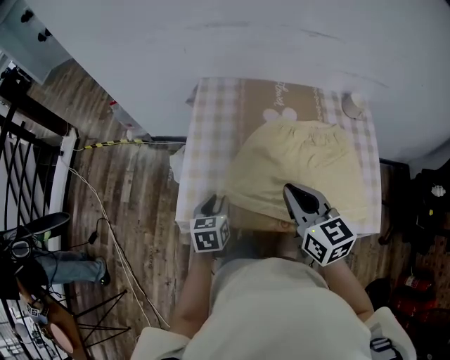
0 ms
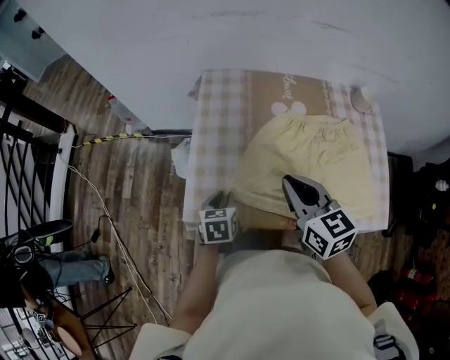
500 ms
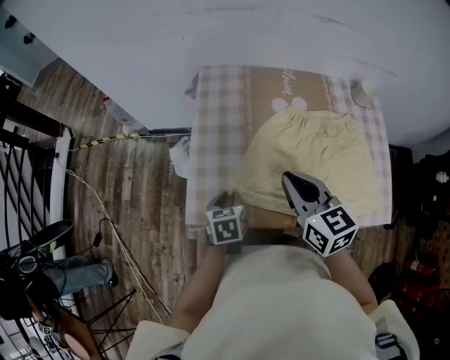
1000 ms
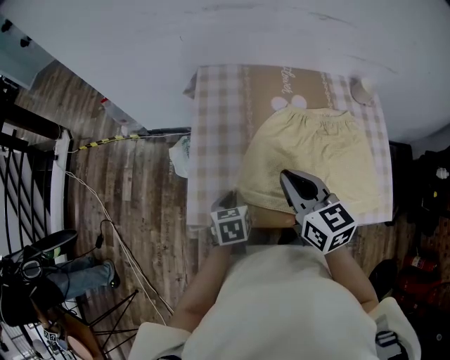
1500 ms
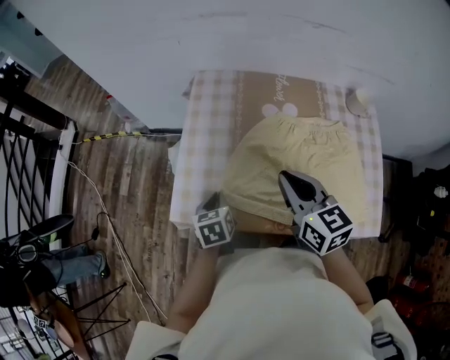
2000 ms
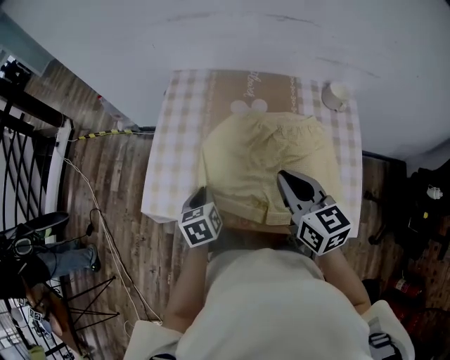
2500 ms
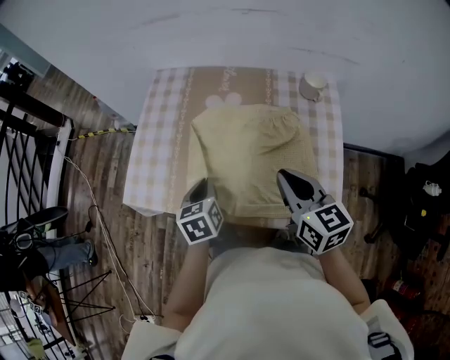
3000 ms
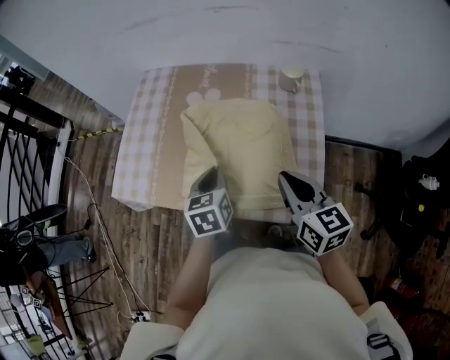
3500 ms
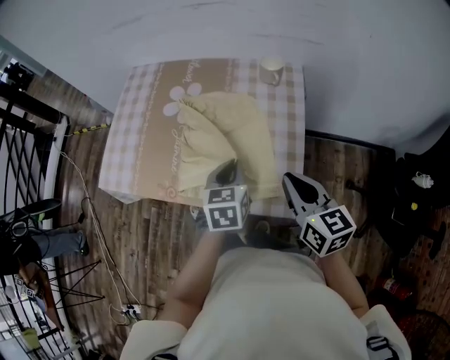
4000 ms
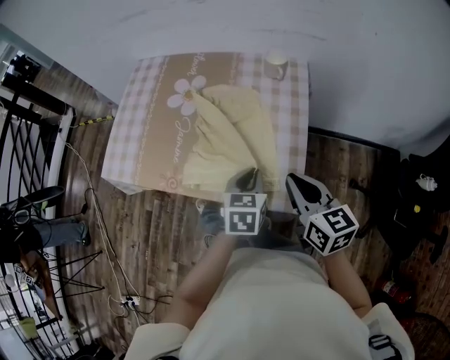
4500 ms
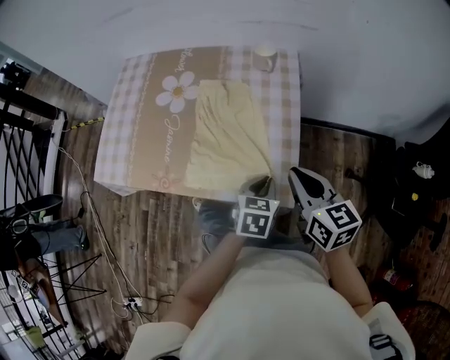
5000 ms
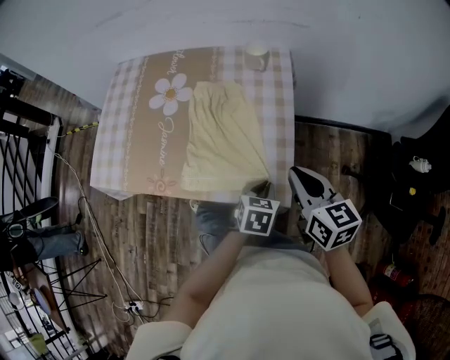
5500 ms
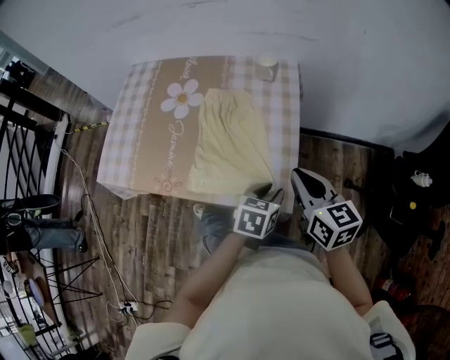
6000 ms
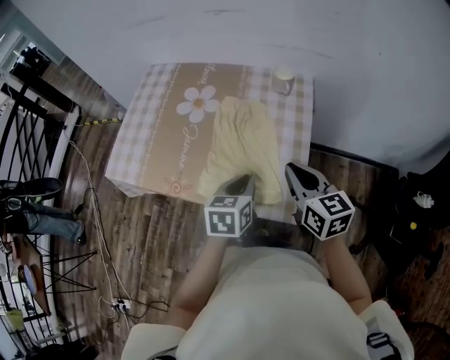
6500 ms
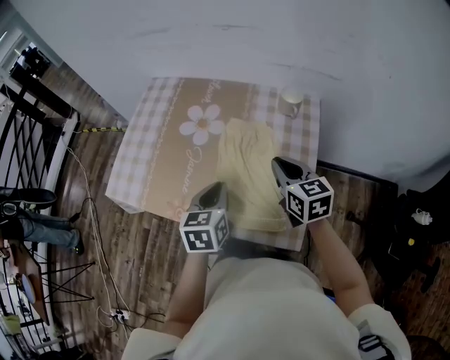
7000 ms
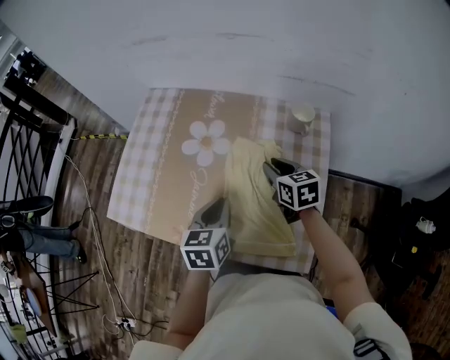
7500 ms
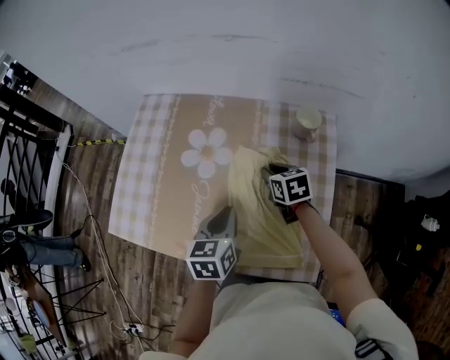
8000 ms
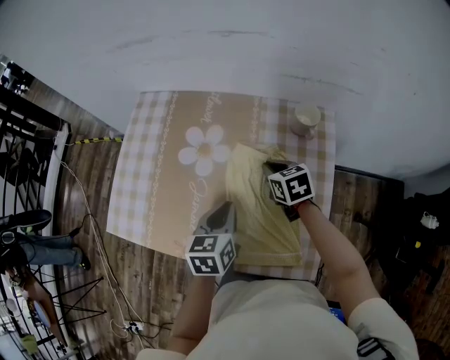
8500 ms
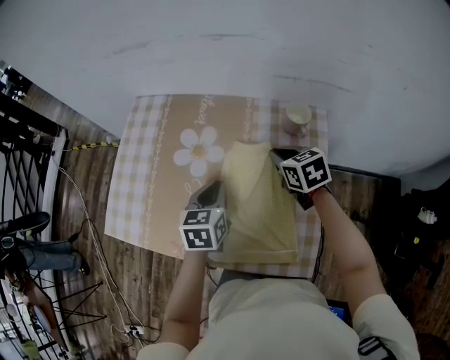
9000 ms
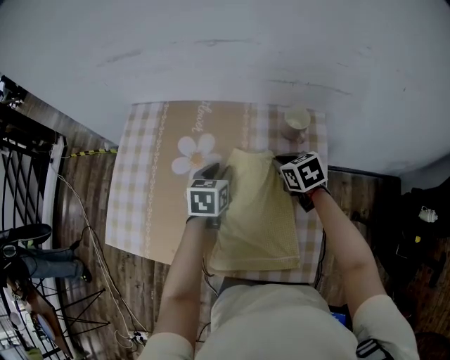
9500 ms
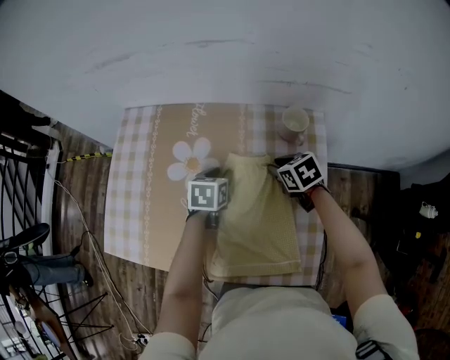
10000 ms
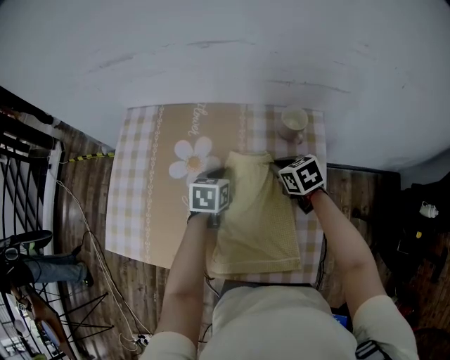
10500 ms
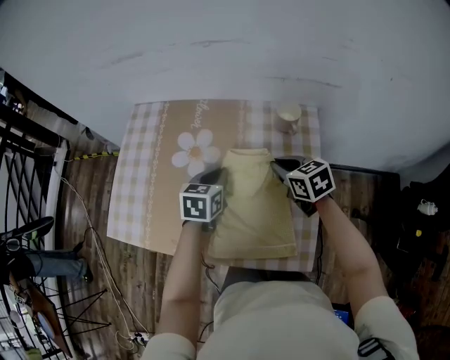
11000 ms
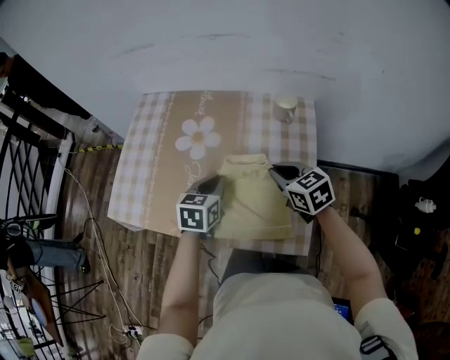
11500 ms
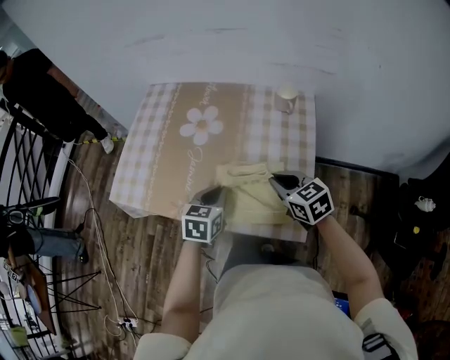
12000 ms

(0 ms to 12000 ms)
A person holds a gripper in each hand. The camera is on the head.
0 ms - 2000 ms: The left gripper closes.
2000 ms - 4000 ms: The left gripper is displaced to the right by about 40 cm, while the right gripper moves to the right and backward, about 40 cm.
4000 ms - 6000 ms: The left gripper heads to the right, backward and downward, covering roughly 15 cm, rotates some 30 degrees, and opens.
6000 ms - 8000 ms: The right gripper shifts about 35 cm forward, downward and to the left, and turns by roughly 30 degrees, while the left gripper is displaced to the left and forward by some 30 cm, rotates roughly 30 degrees, and closes.
8000 ms - 10000 ms: The right gripper travels to the right by some 5 cm, and goes upward and returns, approximately 5 cm each way; the left gripper travels forward and downward by approximately 15 cm, rotates about 20 degrees, and opens up.
10000 ms - 12000 ms: The right gripper heads backward and upward, covering roughly 25 cm, and turns by some 20 degrees. Meanwhile the left gripper heads backward, covering roughly 25 cm, and closes.

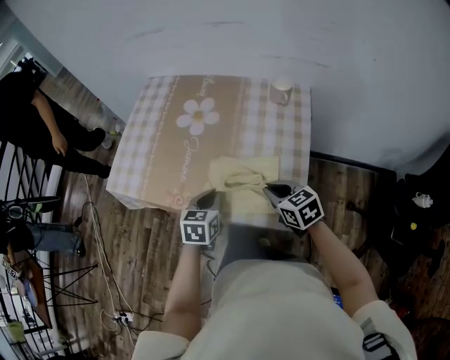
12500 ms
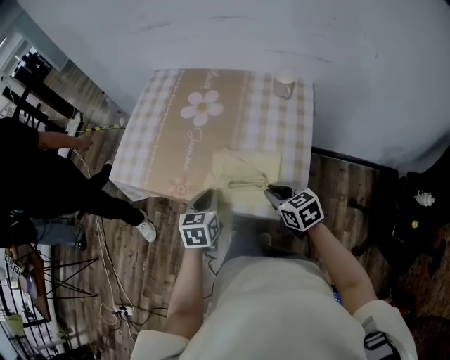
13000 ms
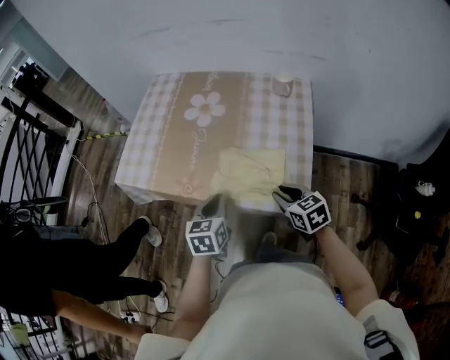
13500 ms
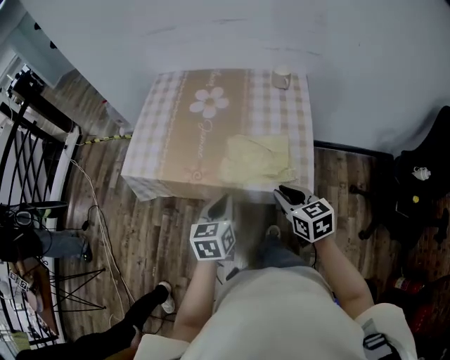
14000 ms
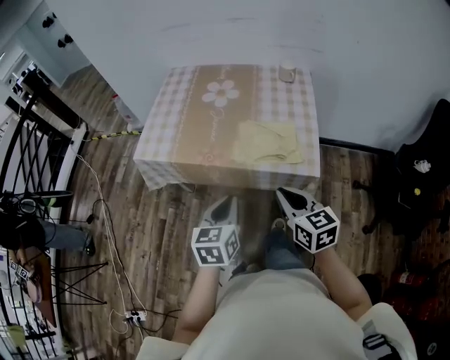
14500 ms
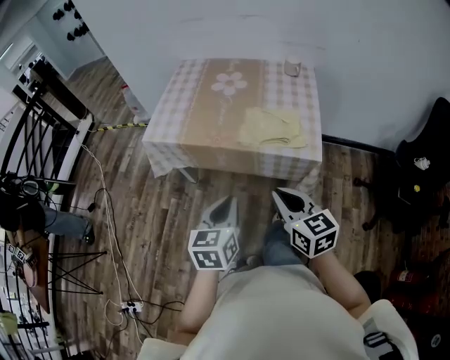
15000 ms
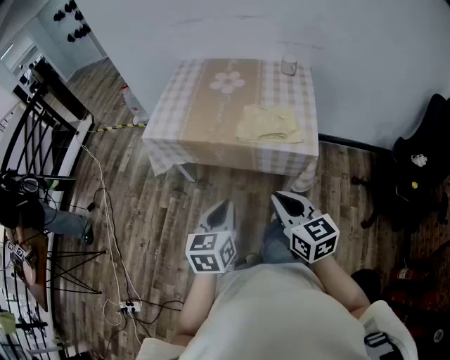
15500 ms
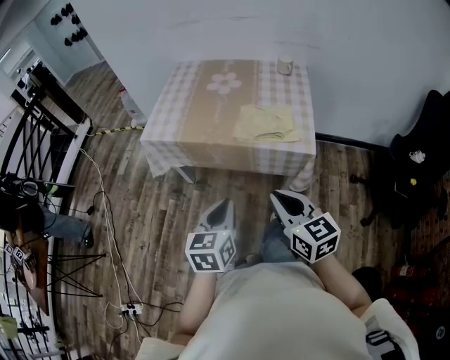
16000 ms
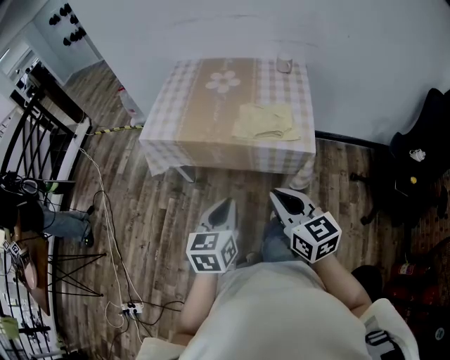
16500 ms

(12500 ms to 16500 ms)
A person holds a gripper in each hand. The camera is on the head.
12500 ms - 14500 ms: The left gripper heads backward, upward and to the left, covering about 25 cm. Meanwhile the right gripper heads backward, to the left and upward, covering some 25 cm, and changes its angle by approximately 20 degrees.
14500 ms - 16500 ms: The left gripper is displaced backward by some 10 cm, while the right gripper shifts about 15 cm backward, to the left and upward.

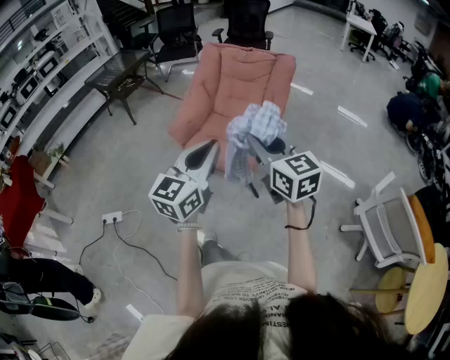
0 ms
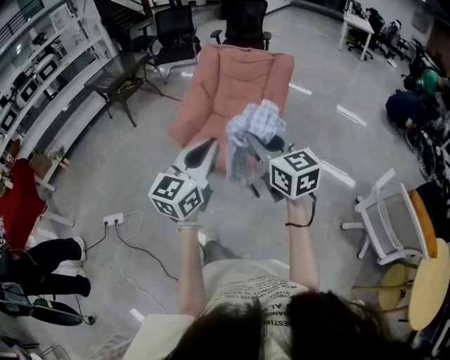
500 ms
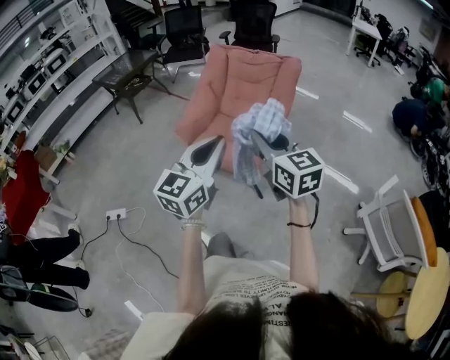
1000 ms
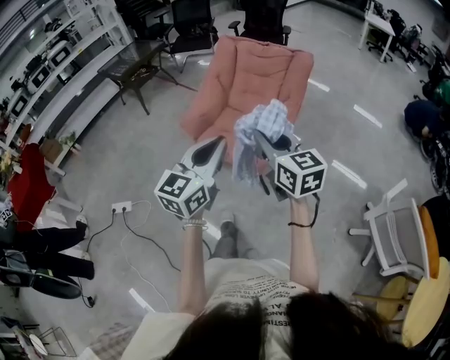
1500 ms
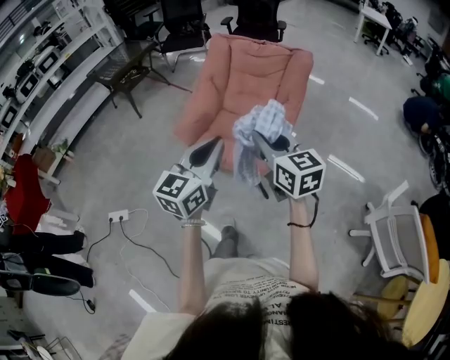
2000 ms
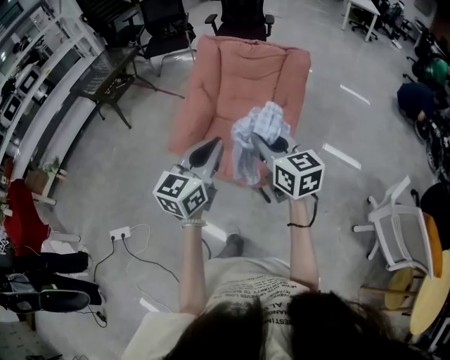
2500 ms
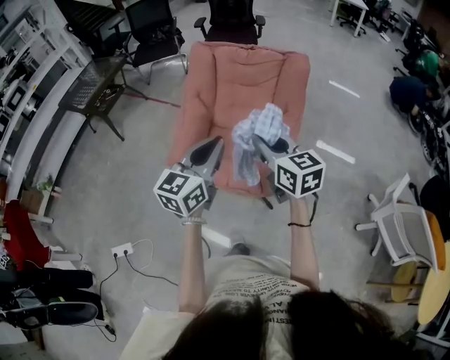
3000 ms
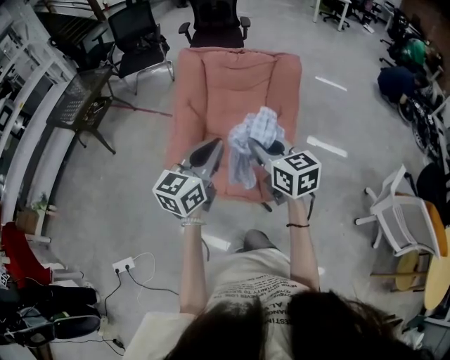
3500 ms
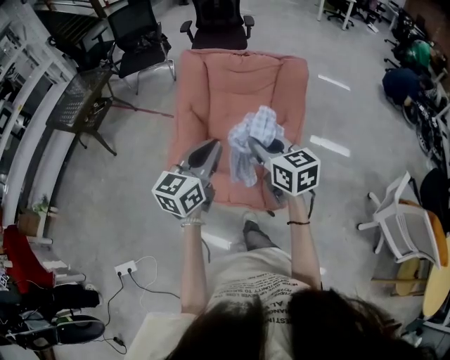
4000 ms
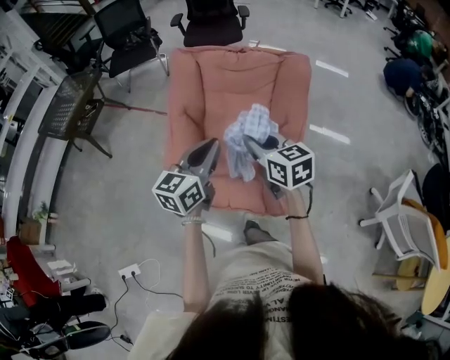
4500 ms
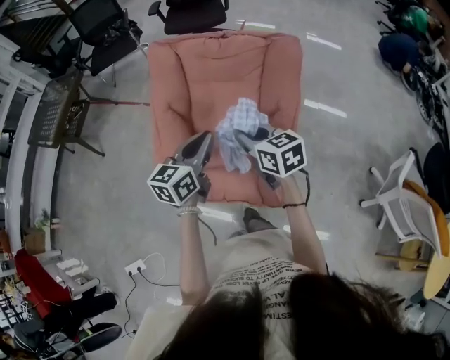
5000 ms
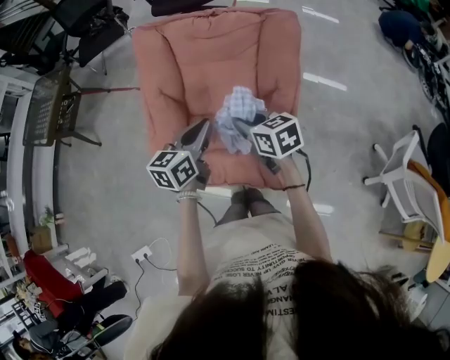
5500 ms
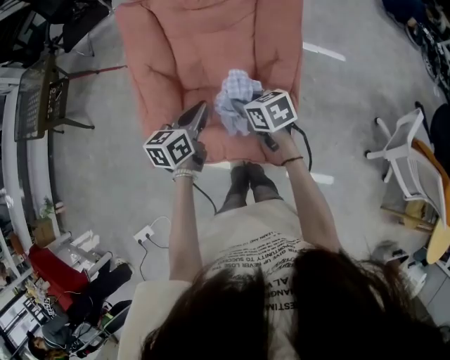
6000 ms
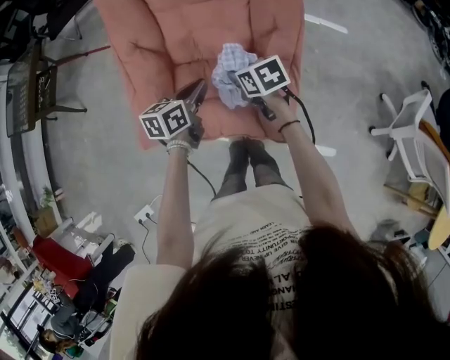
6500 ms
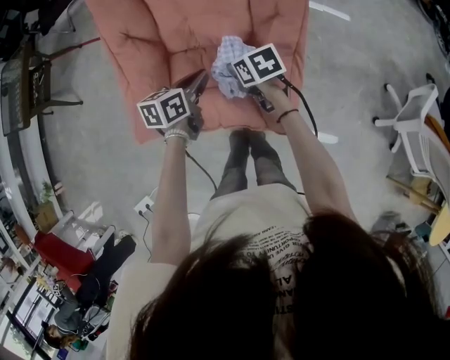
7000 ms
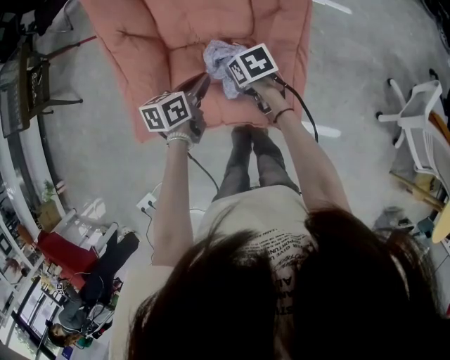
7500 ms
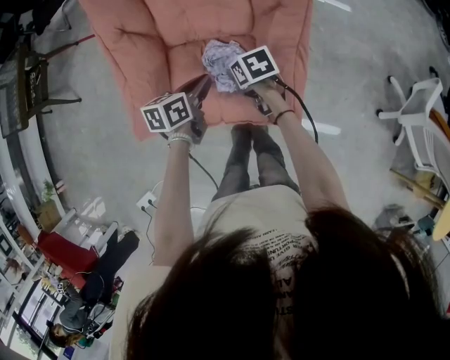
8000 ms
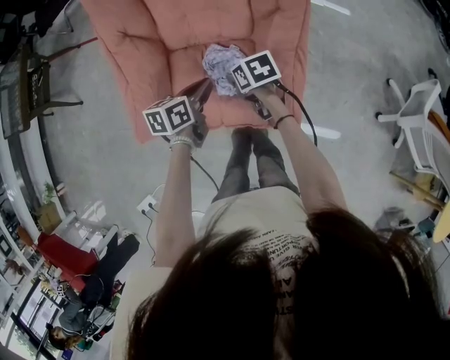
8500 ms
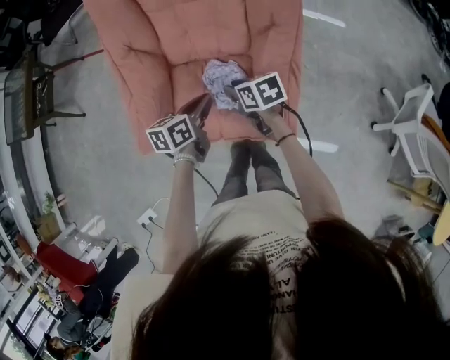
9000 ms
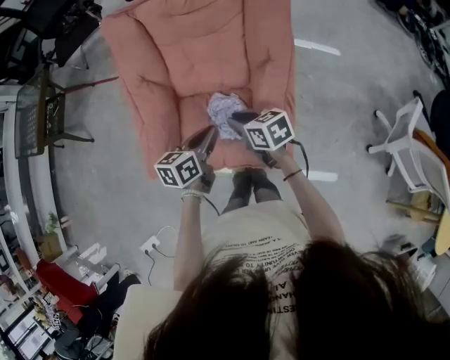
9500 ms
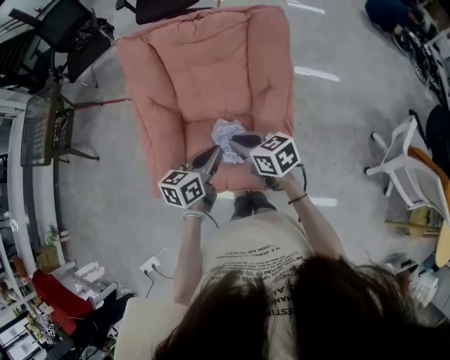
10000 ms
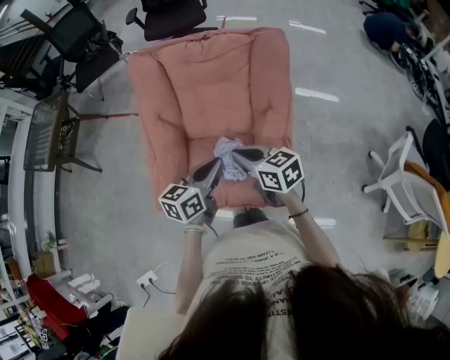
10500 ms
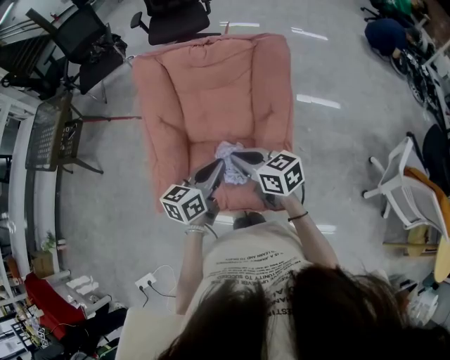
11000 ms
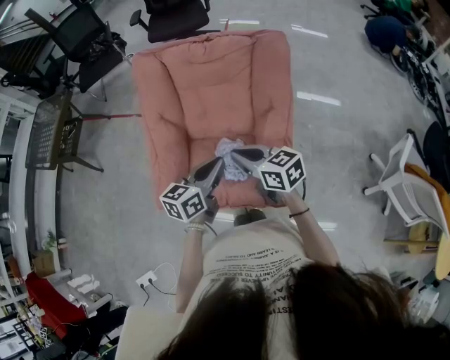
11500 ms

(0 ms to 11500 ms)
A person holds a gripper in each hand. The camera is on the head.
0 ms - 2000 ms: The grippers both shift forward by about 10 cm.
2000 ms - 4000 ms: Both grippers travel together forward, some 30 cm.
4000 ms - 6000 ms: The two grippers go roughly 30 cm downward and forward. The right gripper changes its angle by approximately 30 degrees, while the left gripper turns by about 30 degrees.
6000 ms - 7500 ms: Both grippers travel together downward, about 15 cm. The right gripper swivels approximately 20 degrees.
7500 ms - 9500 ms: Both grippers travel together upward, some 10 cm. The right gripper turns by approximately 20 degrees.
9500 ms - 11500 ms: Both grippers travel together upward, about 10 cm.
